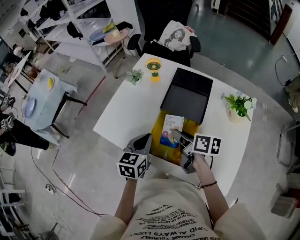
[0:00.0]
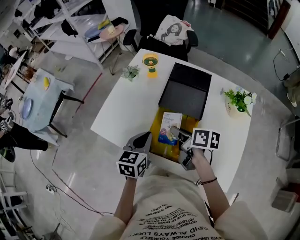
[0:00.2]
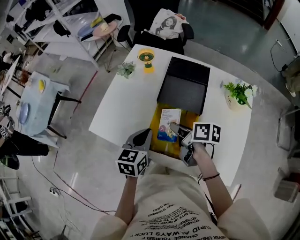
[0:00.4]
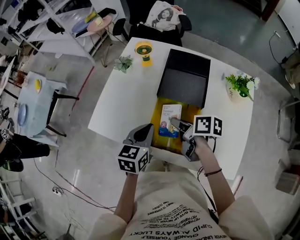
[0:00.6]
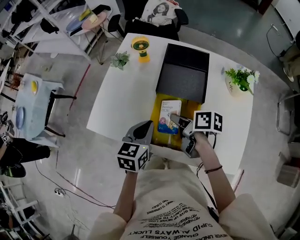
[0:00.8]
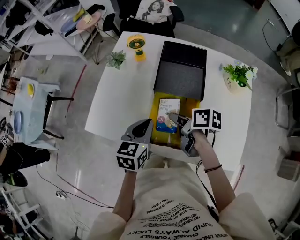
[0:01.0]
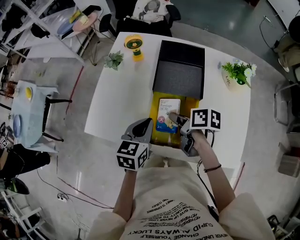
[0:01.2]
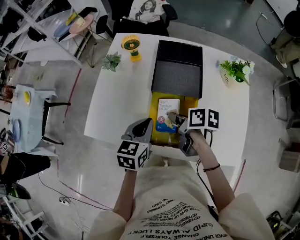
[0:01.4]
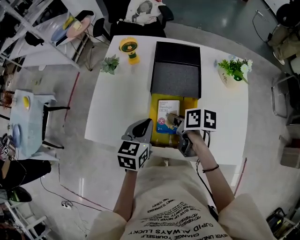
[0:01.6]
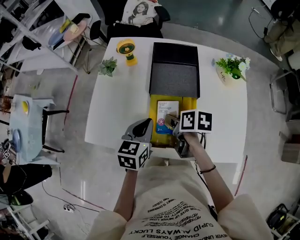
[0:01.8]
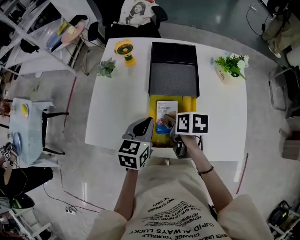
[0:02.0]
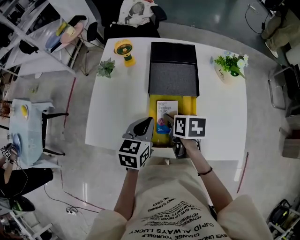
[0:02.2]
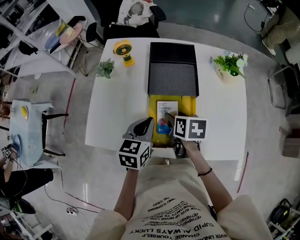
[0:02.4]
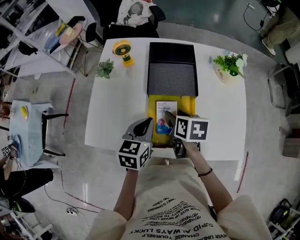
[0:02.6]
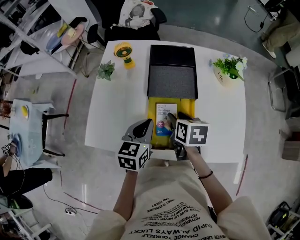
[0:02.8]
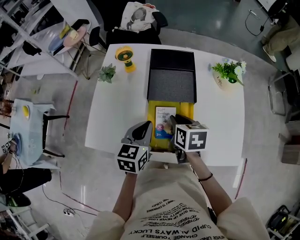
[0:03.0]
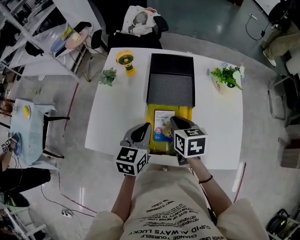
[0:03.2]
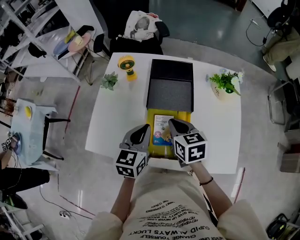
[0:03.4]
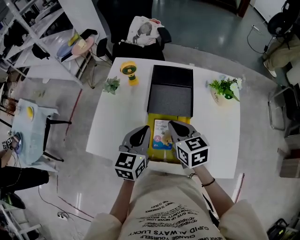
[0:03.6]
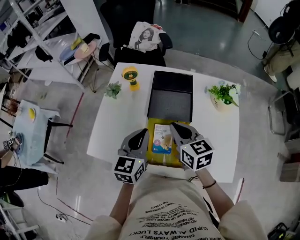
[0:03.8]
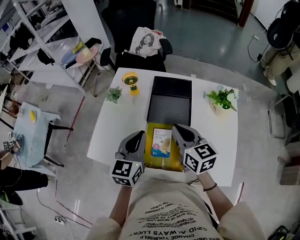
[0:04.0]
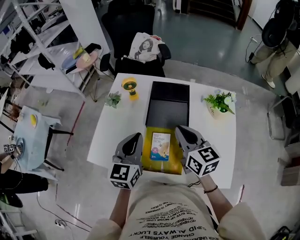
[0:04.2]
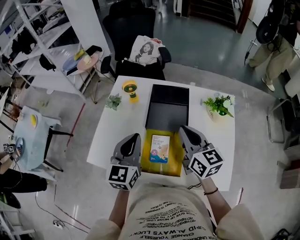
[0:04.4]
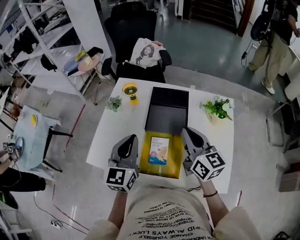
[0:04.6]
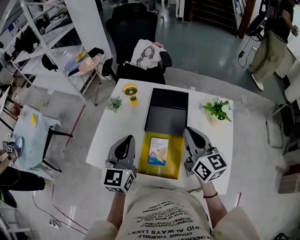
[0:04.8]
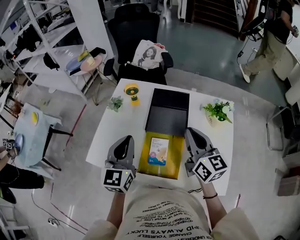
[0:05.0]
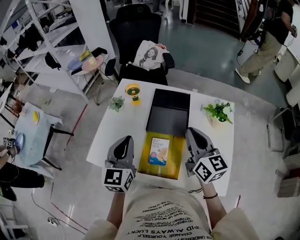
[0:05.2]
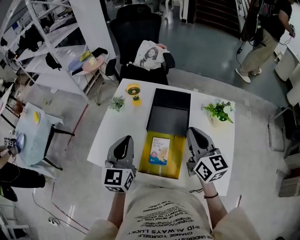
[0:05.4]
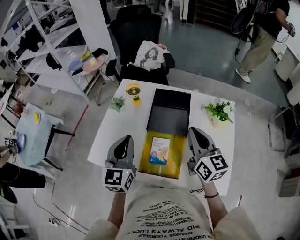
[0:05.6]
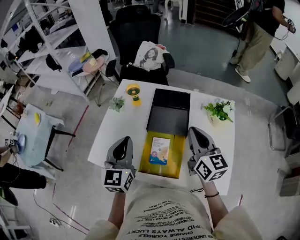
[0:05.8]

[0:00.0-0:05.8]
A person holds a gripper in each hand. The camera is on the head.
0:00.0 to 0:01.4: There are only small adjustments of the grippers.
0:01.4 to 0:02.8: The right gripper turns by roughly 30 degrees, and opens up.
0:02.8 to 0:04.4: Both grippers travel together upward, approximately 15 cm. The left gripper swivels about 30 degrees, while the right gripper angles its fingers upward, by about 40 degrees, and closes.
0:04.4 to 0:05.8: There are only small adjustments of the grippers.

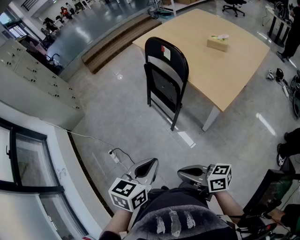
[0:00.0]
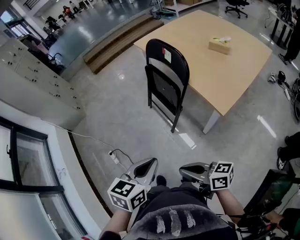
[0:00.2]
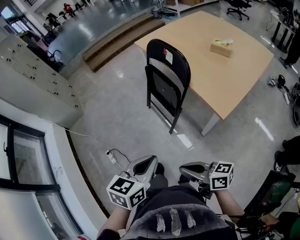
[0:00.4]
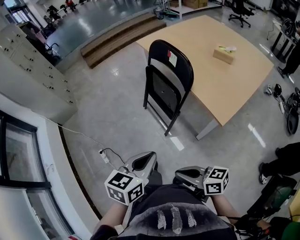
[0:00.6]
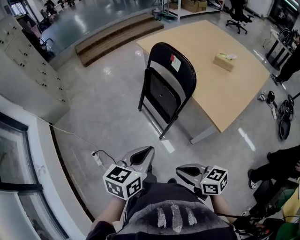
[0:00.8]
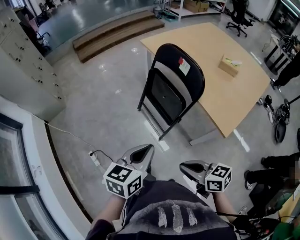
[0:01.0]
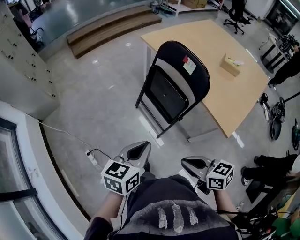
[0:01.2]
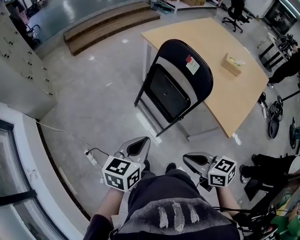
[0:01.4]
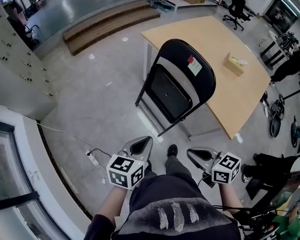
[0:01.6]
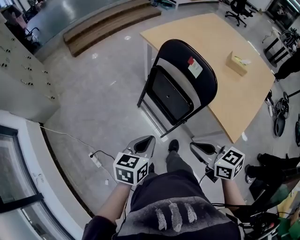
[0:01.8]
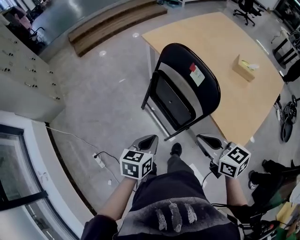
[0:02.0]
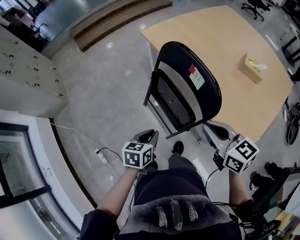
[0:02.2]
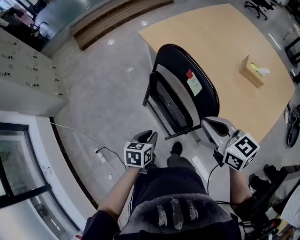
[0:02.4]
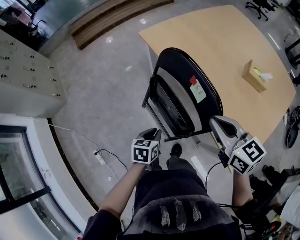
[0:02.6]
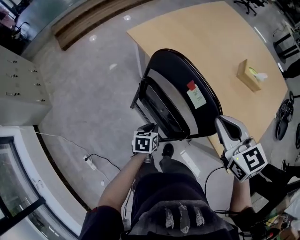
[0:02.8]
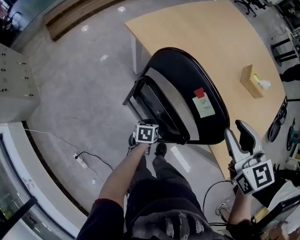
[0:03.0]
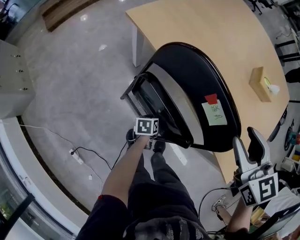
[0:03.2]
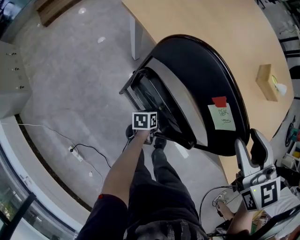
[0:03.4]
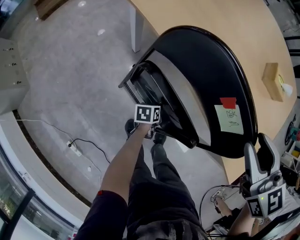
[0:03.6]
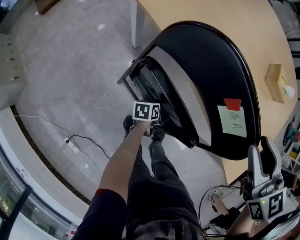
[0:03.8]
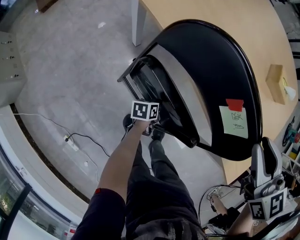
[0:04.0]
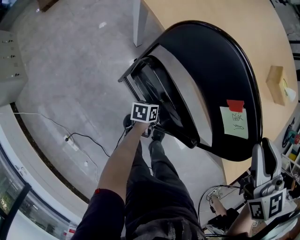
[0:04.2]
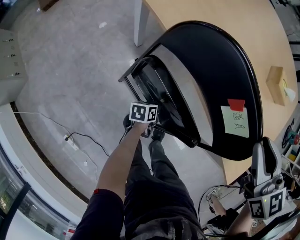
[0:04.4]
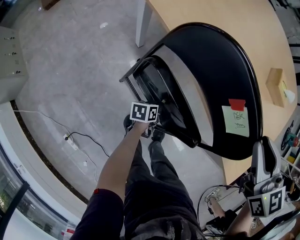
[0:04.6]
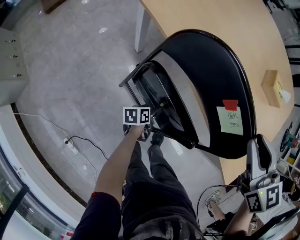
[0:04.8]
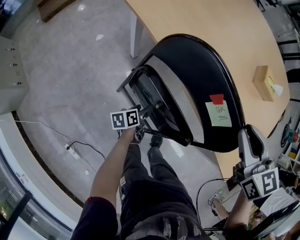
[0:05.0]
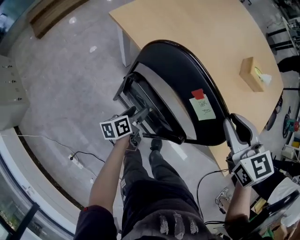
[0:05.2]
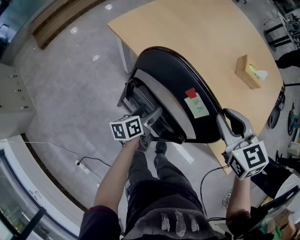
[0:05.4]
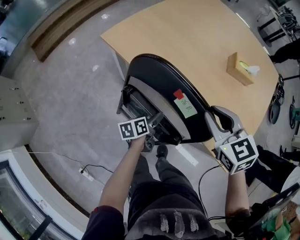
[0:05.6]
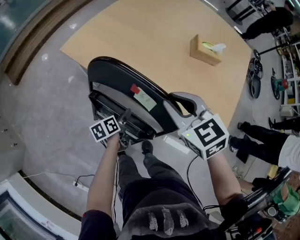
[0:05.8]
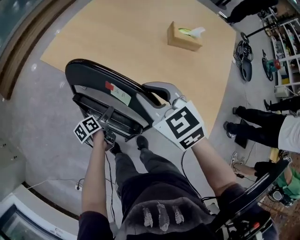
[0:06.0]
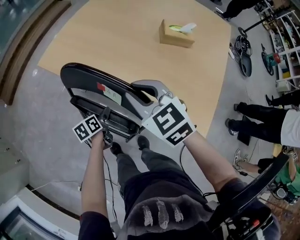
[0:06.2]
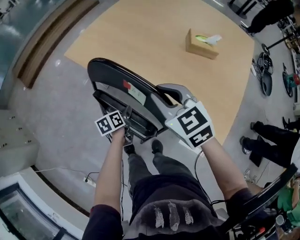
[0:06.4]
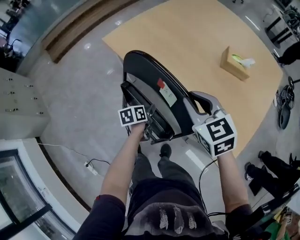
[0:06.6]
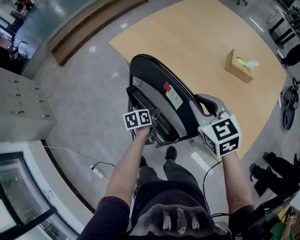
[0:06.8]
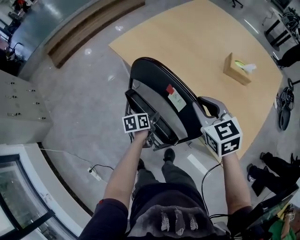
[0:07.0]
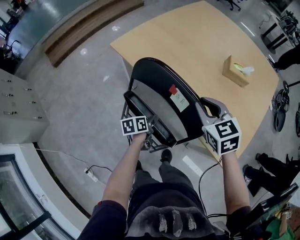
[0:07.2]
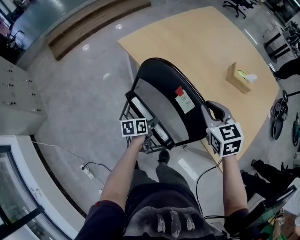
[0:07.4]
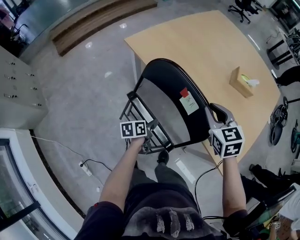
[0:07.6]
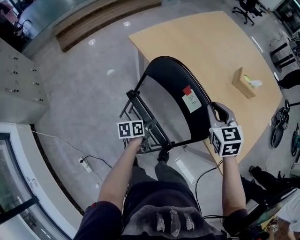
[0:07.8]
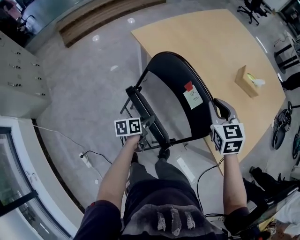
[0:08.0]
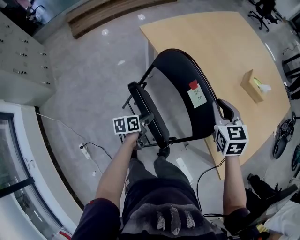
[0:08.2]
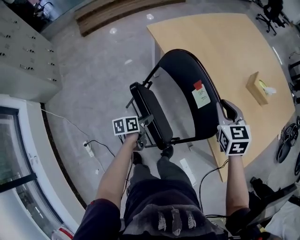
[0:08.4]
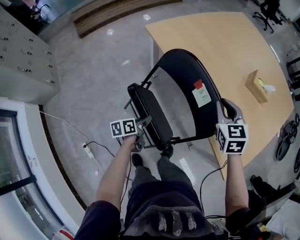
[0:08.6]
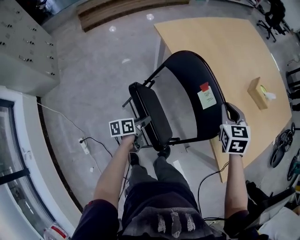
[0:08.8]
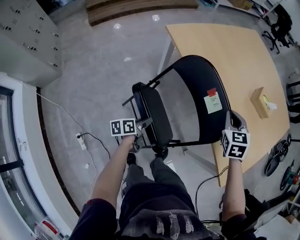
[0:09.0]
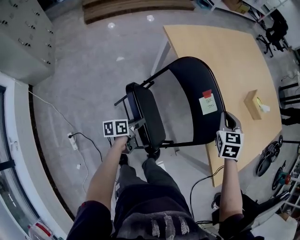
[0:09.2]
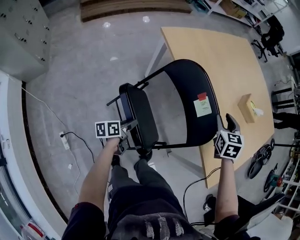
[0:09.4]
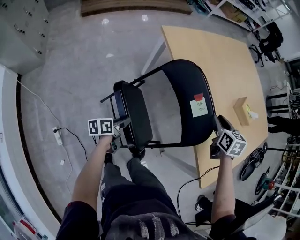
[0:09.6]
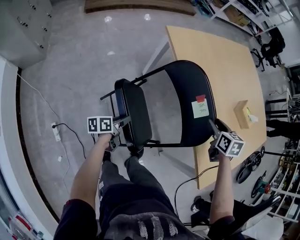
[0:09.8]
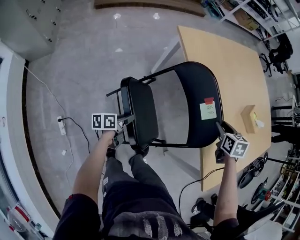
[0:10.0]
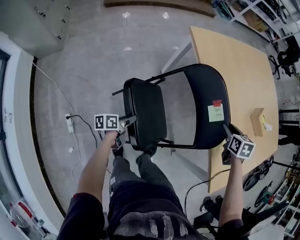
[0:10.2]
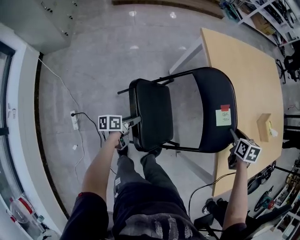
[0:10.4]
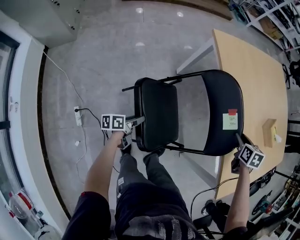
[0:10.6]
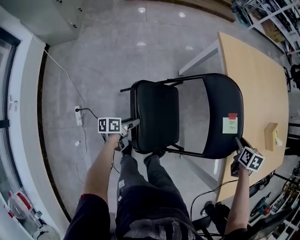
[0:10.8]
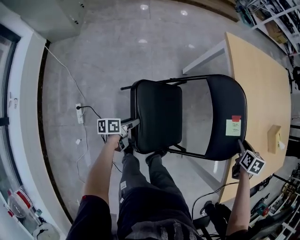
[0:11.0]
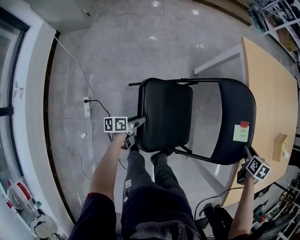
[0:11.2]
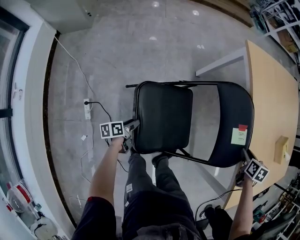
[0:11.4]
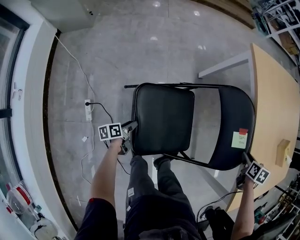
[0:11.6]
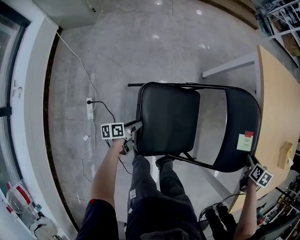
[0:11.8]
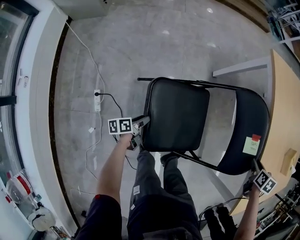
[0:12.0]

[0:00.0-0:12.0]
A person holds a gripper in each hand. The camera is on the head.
0:00.0 to 0:01.6: Both grippers travel together forward, some 25 cm. The right gripper rotates roughly 30 degrees.
0:01.6 to 0:03.0: The left gripper heads downward and forward, covering roughly 50 cm, and tips its fingers downward by approximately 30 degrees. The right gripper is displaced forward and to the right by about 40 cm, rotates about 40 degrees, and opens its fingers.
0:03.0 to 0:04.4: The left gripper goes some 10 cm downward, and swivels roughly 20 degrees, while the right gripper changes place by some 5 cm.
0:04.4 to 0:06.0: The left gripper moves upward, some 15 cm, and opens up.
0:06.0 to 0:07.6: The left gripper moves backward, approximately 5 cm, and closes its fingers.
0:07.6 to 0:09.0: The left gripper heads backward and to the left, covering approximately 15 cm.
0:09.0 to 0:10.4: The left gripper moves backward, to the left and downward, some 15 cm; the right gripper heads downward, covering about 10 cm, swivels approximately 20 degrees, and opens up.
0:10.4 to 0:12.0: The right gripper shifts roughly 10 cm downward, backward and to the left; the left gripper moves to the left, downward and backward, some 25 cm.

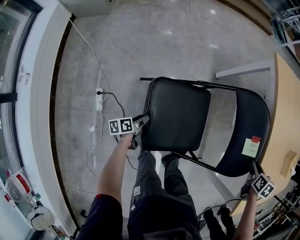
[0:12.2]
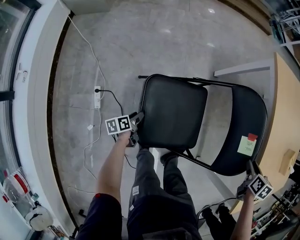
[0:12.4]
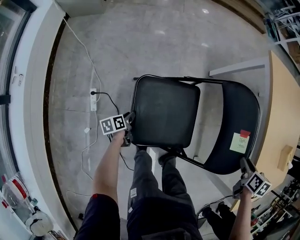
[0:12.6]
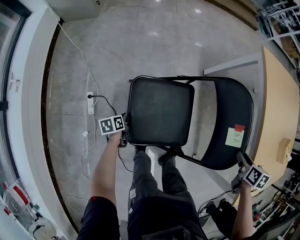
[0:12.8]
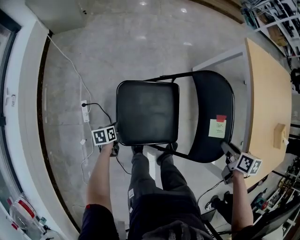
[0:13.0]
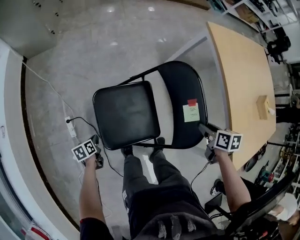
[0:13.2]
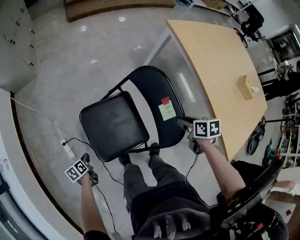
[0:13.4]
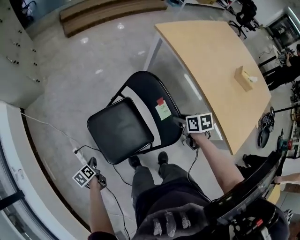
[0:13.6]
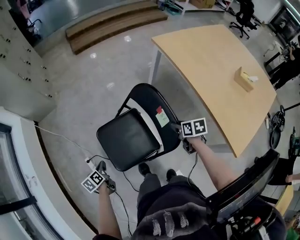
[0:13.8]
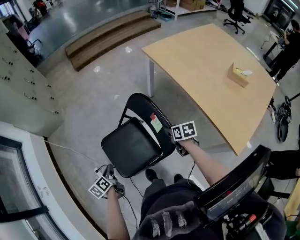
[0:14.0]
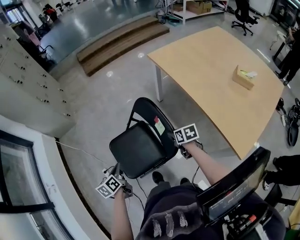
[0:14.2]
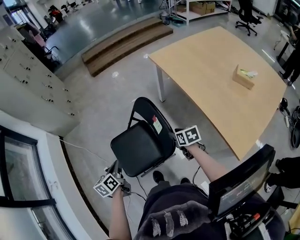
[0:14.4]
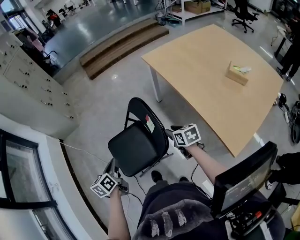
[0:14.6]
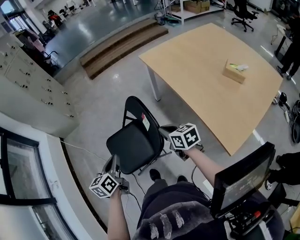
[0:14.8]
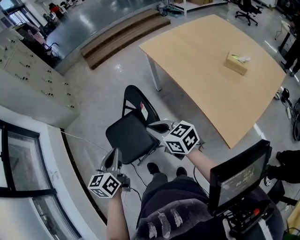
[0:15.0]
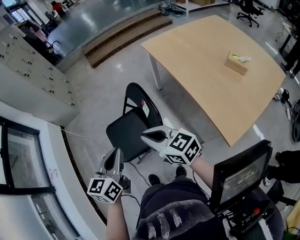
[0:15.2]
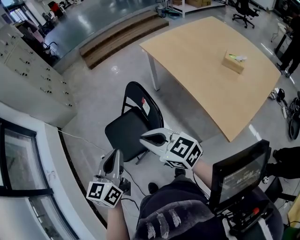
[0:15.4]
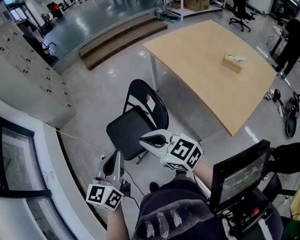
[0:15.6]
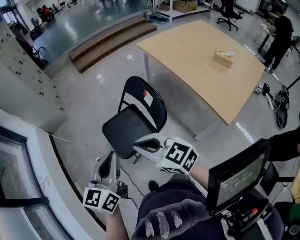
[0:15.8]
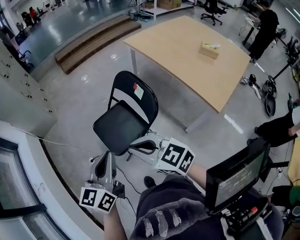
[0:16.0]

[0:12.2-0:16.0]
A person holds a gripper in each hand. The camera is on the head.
0:12.2 to 0:13.4: The left gripper moves about 15 cm, changes its angle by approximately 30 degrees, and closes its fingers. The right gripper shifts by roughly 15 cm, and turns by roughly 20 degrees.
0:13.4 to 0:14.8: The right gripper goes about 15 cm upward and backward, rotates about 30 degrees, and closes its fingers, while the left gripper moves upward and to the right, approximately 50 cm, and tilts its fingers approximately 30 degrees upward.
0:14.8 to 0:16.0: The right gripper goes approximately 35 cm to the left, backward and upward, and rotates roughly 30 degrees; the left gripper moves backward, upward and to the left, about 20 cm, and rotates about 30 degrees.

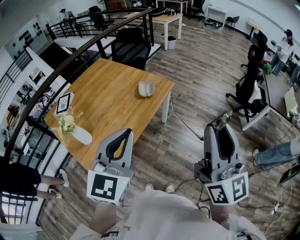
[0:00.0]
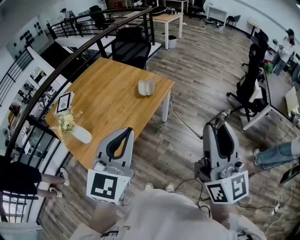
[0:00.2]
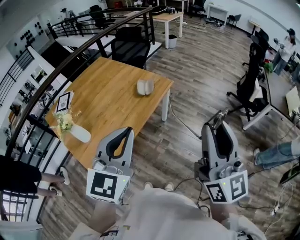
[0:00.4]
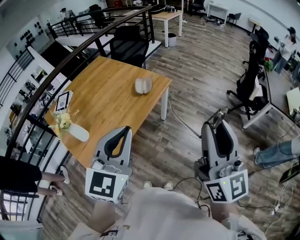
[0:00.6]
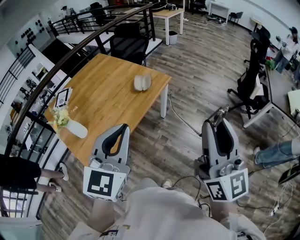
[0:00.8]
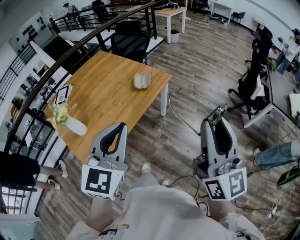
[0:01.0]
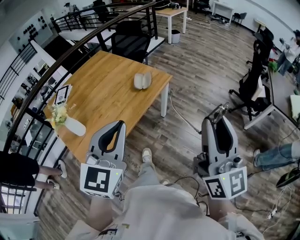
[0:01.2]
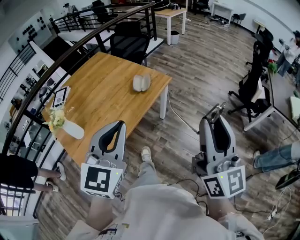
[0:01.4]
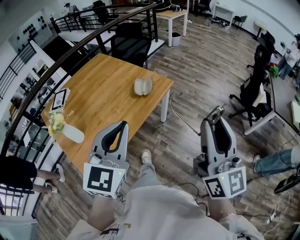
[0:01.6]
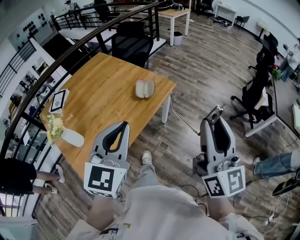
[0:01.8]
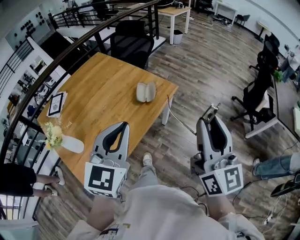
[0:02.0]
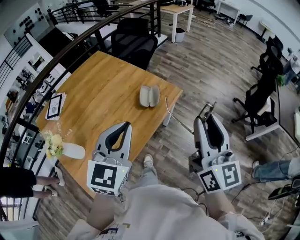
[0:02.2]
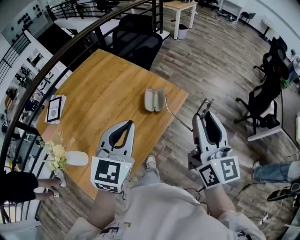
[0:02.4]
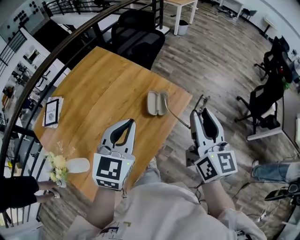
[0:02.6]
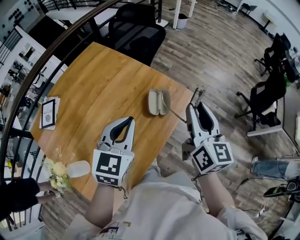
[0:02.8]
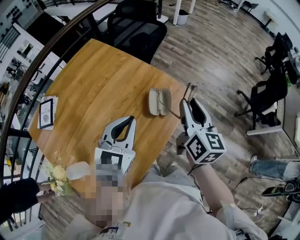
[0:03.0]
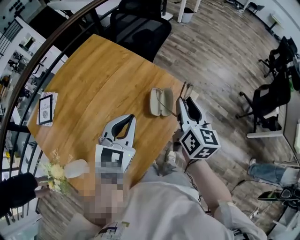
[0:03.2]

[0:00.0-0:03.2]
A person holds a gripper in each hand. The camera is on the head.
0:00.0 to 0:01.6: The left gripper shifts approximately 5 cm forward. Meanwhile the right gripper is displaced forward, downward and to the right by about 10 cm.
0:01.6 to 0:03.2: Both grippers are carried forward and to the left, approximately 50 cm. Both grippers travel together downward, approximately 20 cm. The right gripper rotates roughly 30 degrees; the left gripper turns by some 20 degrees.
